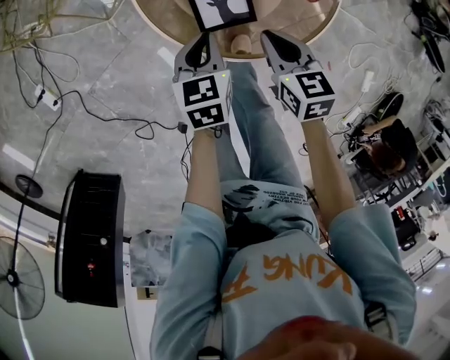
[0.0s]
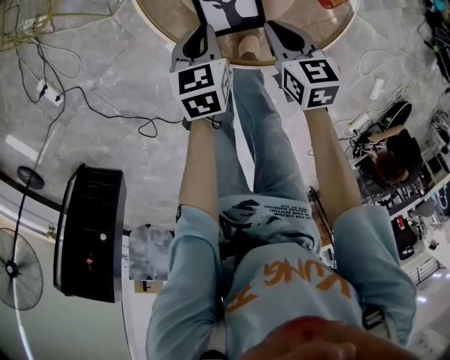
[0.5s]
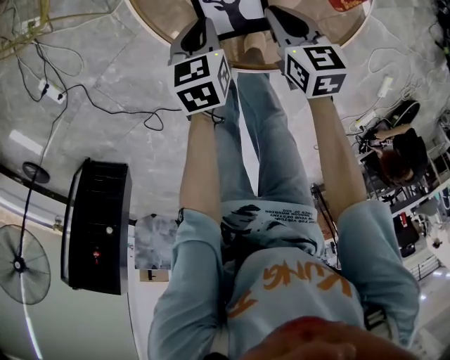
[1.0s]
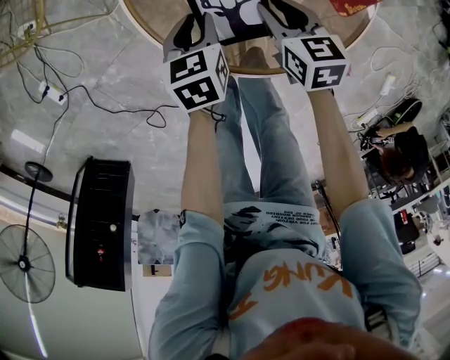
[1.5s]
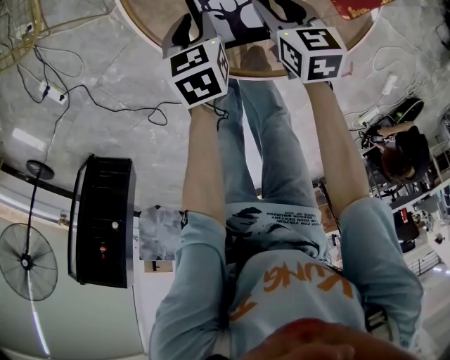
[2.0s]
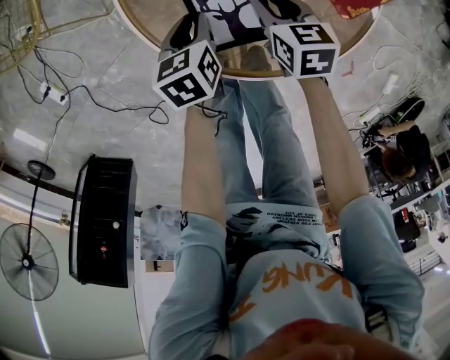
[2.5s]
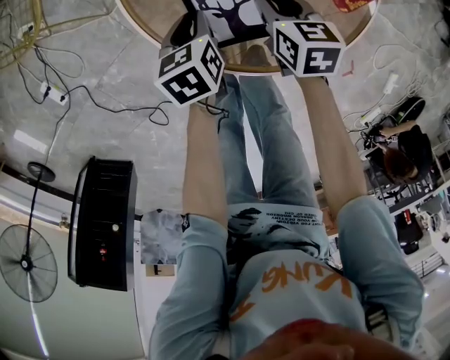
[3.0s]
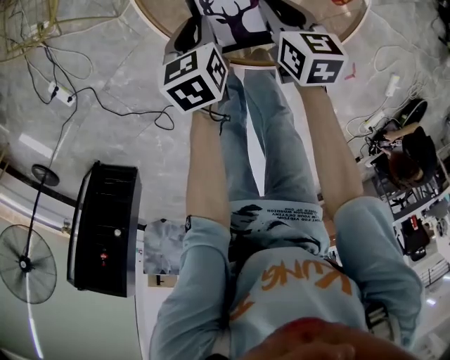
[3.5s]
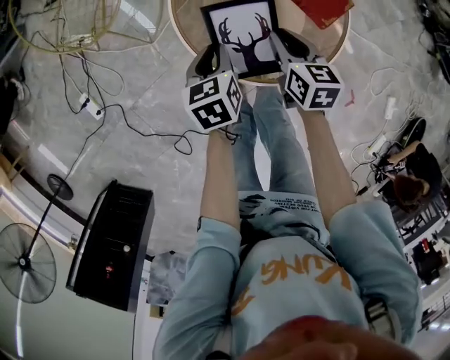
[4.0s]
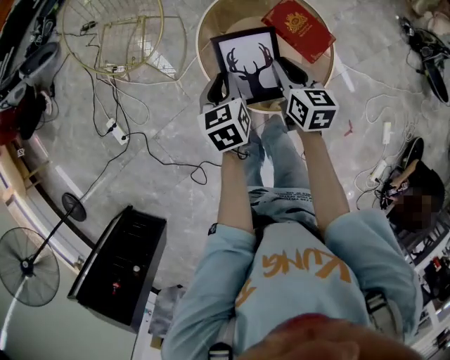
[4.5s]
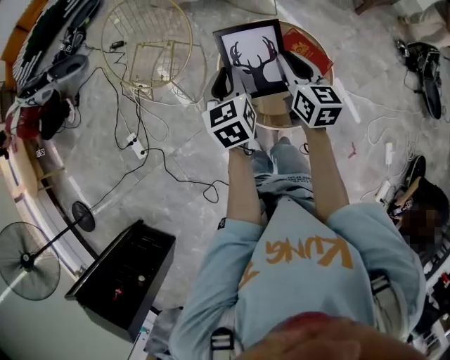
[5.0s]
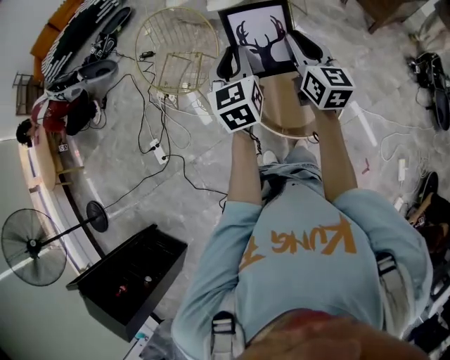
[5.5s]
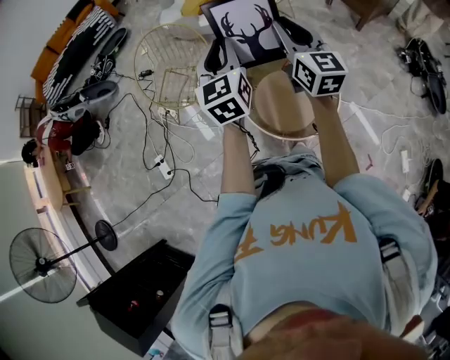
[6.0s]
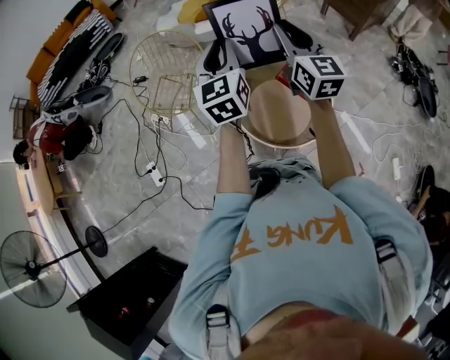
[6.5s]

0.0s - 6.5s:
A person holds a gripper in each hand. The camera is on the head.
0.0s - 2.0s: The grippers both shift downward and forward by some 15 cm. The right gripper opens; the left gripper opens its fingers.
2.0s - 4.5s: Both grippers travel together upward, approximately 35 cm. The left gripper rotates some 20 degrees. Meanwhile the right gripper turns by approximately 20 degrees.
4.5s - 6.5s: The two grippers go about 40 cm upward. The left gripper tips its fingers upward by roughly 40 degrees; the right gripper tilts its fingers some 40 degrees upward.

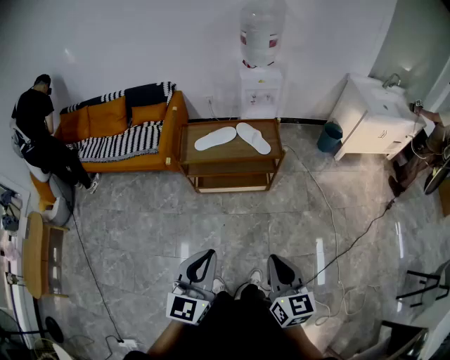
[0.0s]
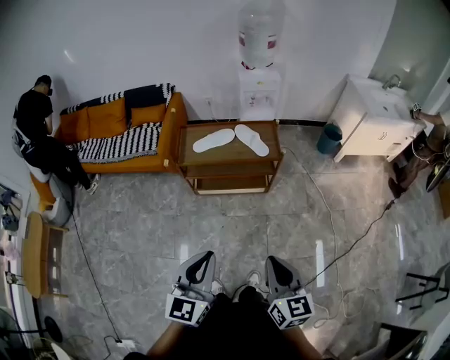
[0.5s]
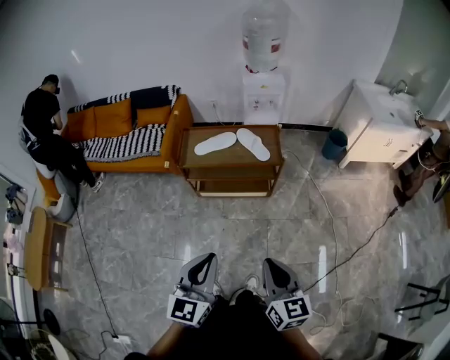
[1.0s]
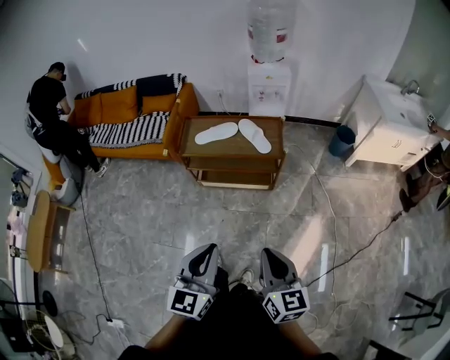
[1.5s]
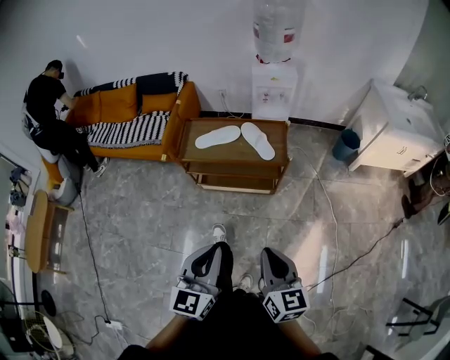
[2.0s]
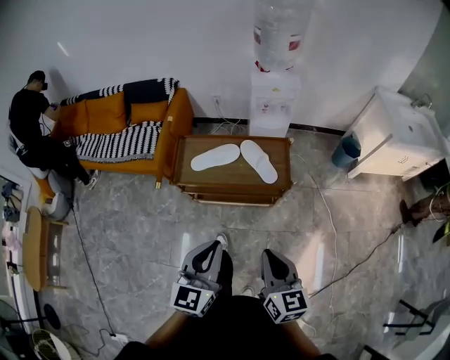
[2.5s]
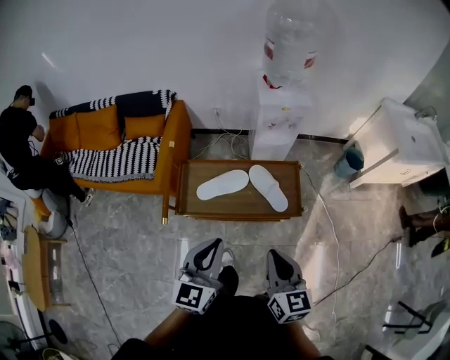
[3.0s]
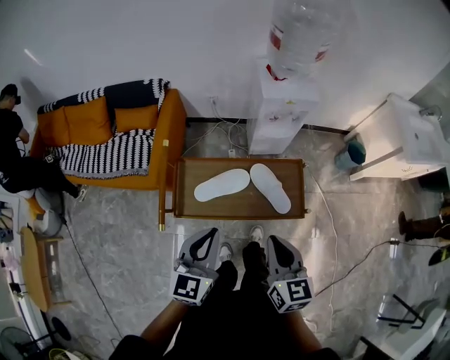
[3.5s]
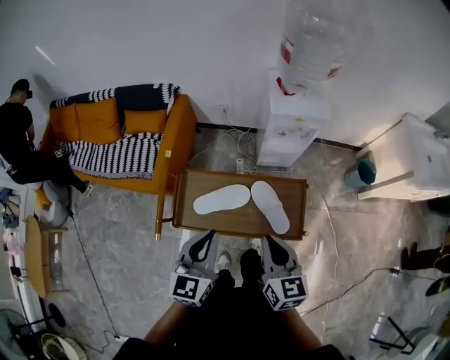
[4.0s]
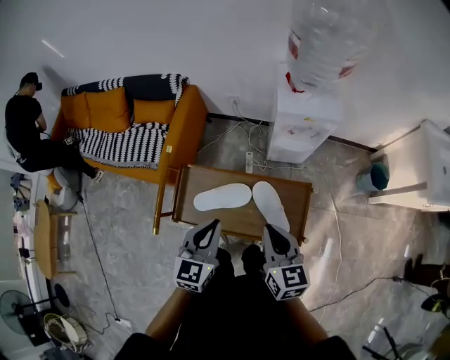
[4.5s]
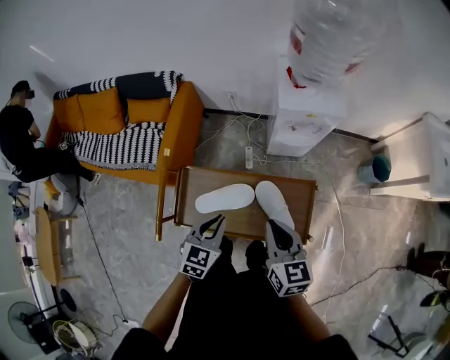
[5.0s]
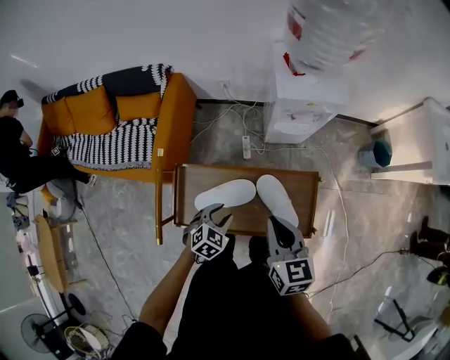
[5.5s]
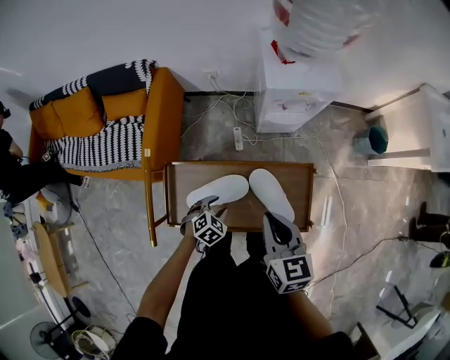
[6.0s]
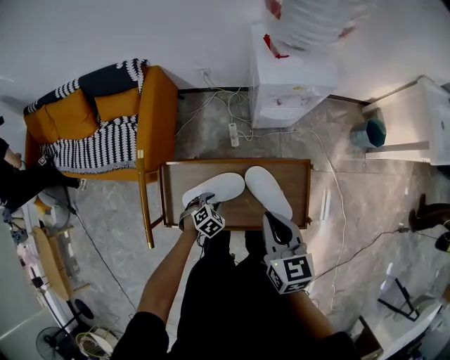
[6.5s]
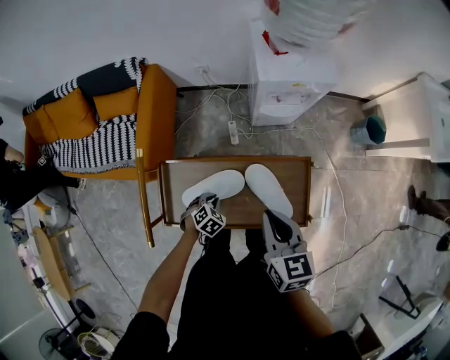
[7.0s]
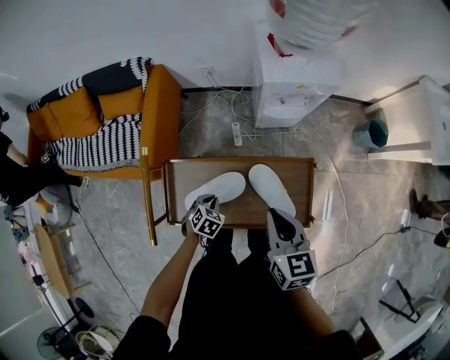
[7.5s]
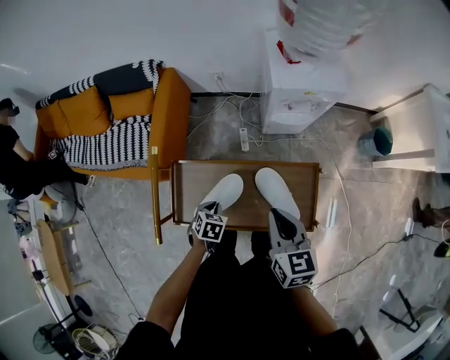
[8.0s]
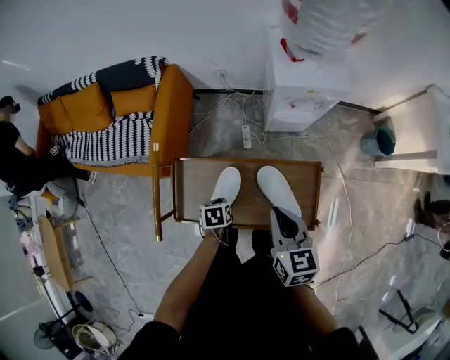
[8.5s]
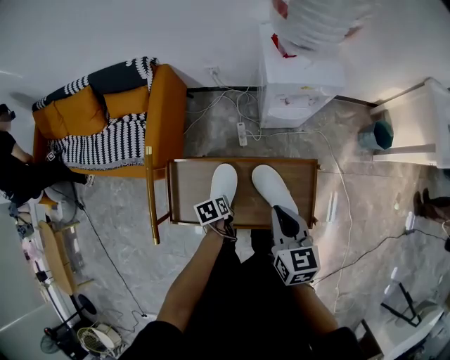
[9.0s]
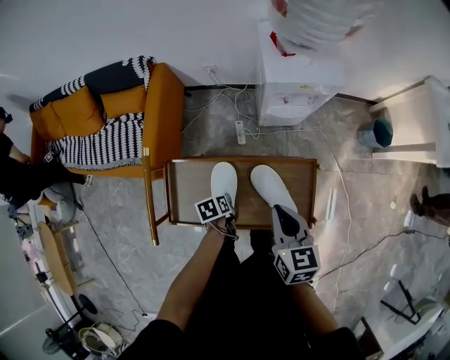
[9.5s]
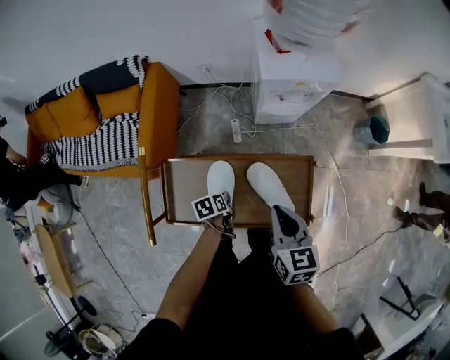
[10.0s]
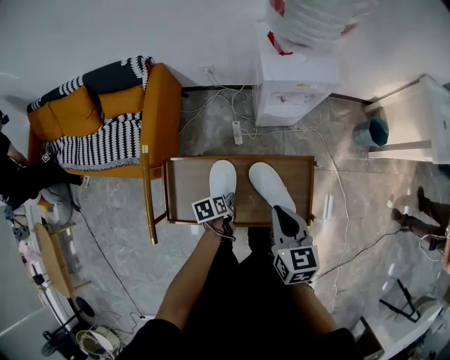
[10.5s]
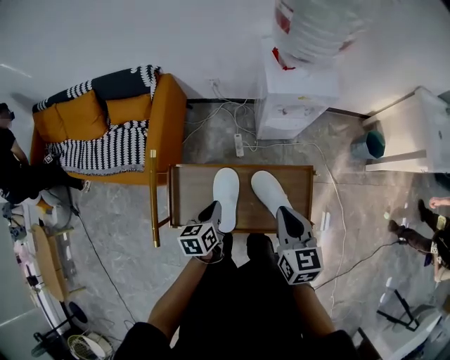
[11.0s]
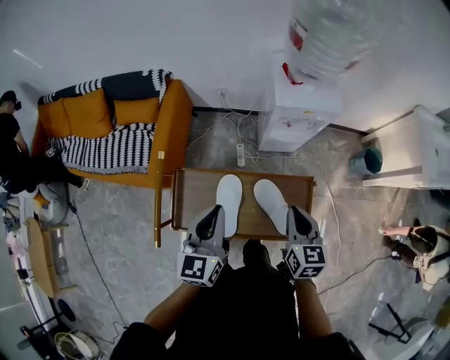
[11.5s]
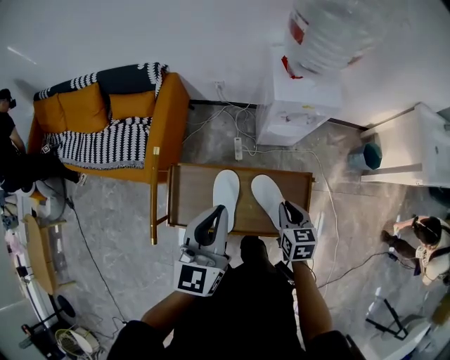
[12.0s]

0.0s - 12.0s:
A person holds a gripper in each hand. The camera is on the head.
0.0s - 2.0s: The left gripper travels to the right and forward by some 15 cm. The right gripper shifts approximately 15 cm forward and to the right.
2.0s - 4.0s: Both grippers are carried forward, about 50 cm.
4.0s - 6.0s: The right gripper is displaced forward and downward by some 15 cm; the left gripper travels downward by roughly 35 cm, points its fingers some 50 degrees further downward, and opens up.
6.0s - 8.0s: The left gripper turns by some 30 degrees, and closes its fingers.
8.0s - 10.0s: The left gripper changes place by about 5 cm, and twists some 50 degrees counterclockwise, seen from behind.
10.0s - 12.0s: The right gripper heads downward, covering roughly 5 cm. The left gripper travels upward by some 40 cm, points its fingers about 50 degrees further upward, and opens, then closes once more.

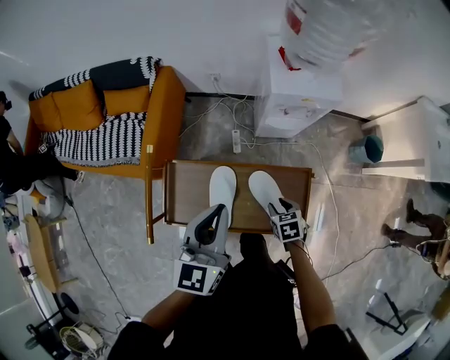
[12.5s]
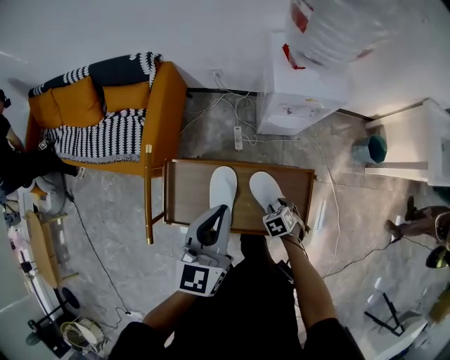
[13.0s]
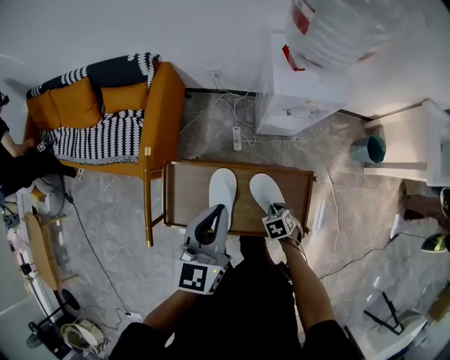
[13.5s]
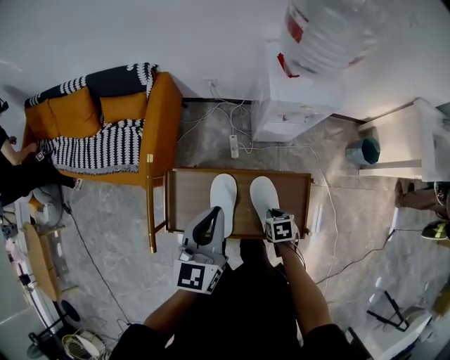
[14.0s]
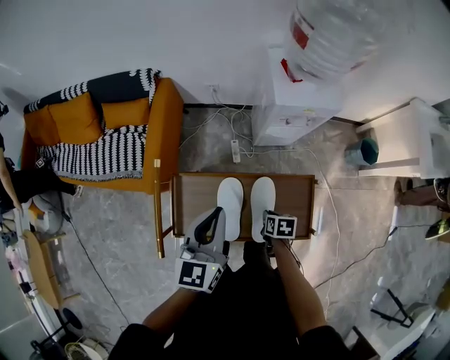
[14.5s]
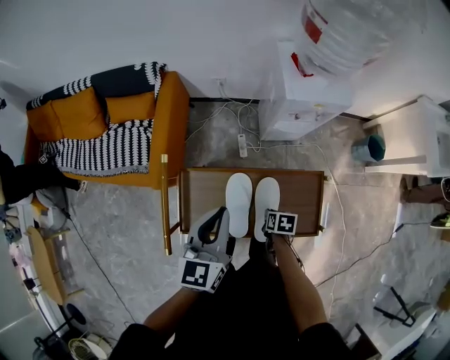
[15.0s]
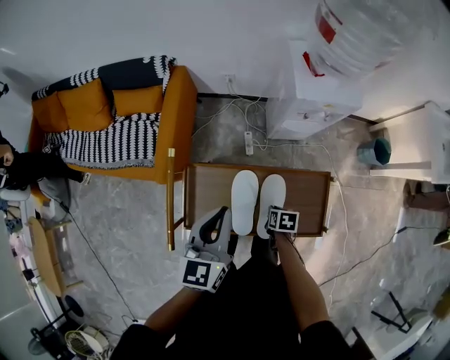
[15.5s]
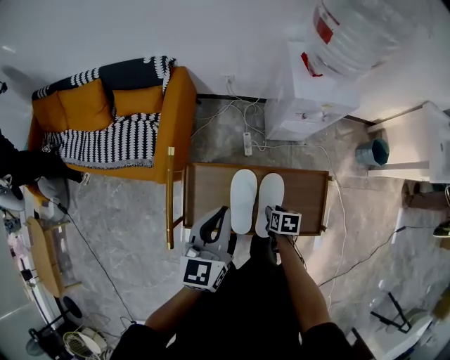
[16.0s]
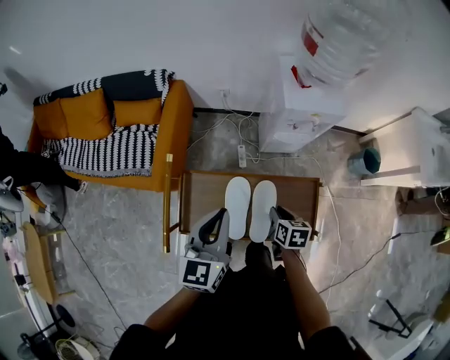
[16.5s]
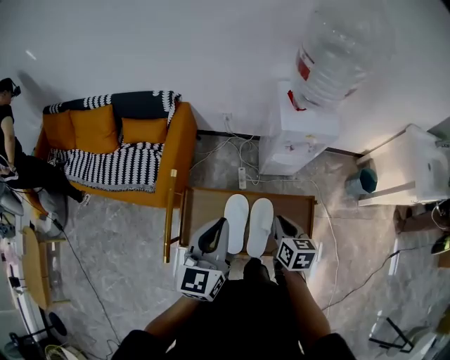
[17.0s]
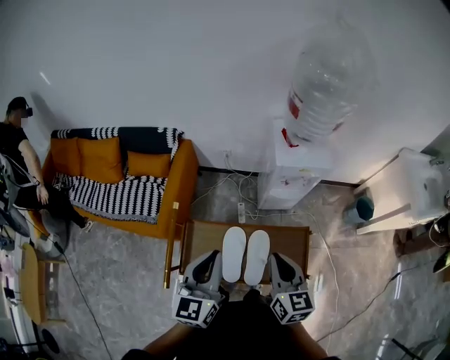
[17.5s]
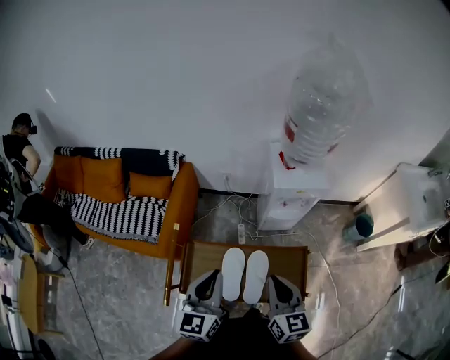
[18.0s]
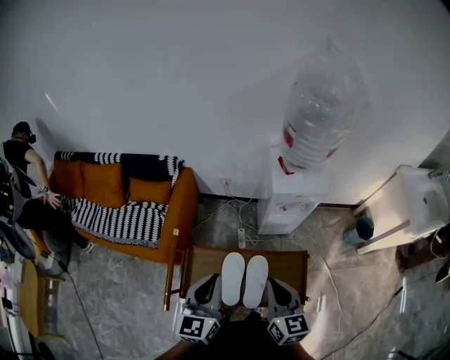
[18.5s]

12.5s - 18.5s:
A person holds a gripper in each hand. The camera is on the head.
12.5s - 14.5s: The left gripper moves about 5 cm. Meanwhile the right gripper moves about 5 cm, swivels about 30 degrees, and closes its fingers.
14.5s - 16.5s: The right gripper moves upward, approximately 10 cm.
16.5s - 18.5s: The left gripper moves upward, roughly 5 cm, while the right gripper heads upward, covering some 25 cm, and points its fingers some 40 degrees further upward.

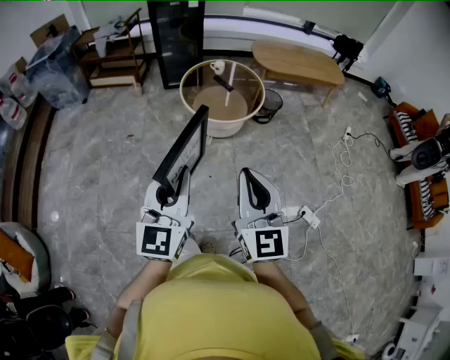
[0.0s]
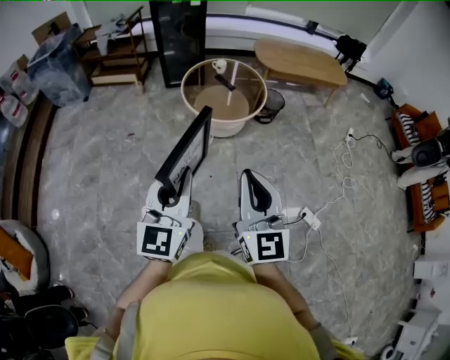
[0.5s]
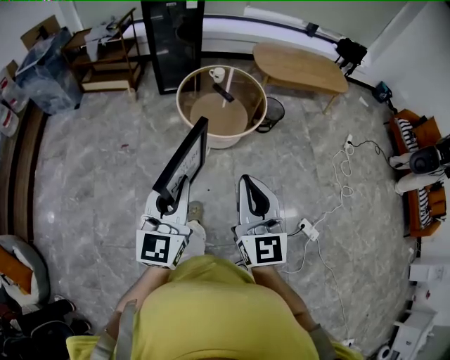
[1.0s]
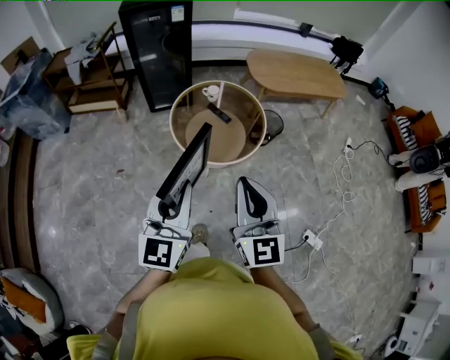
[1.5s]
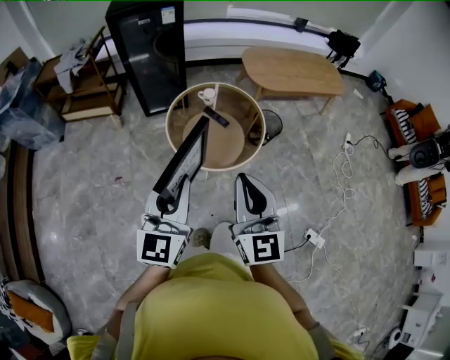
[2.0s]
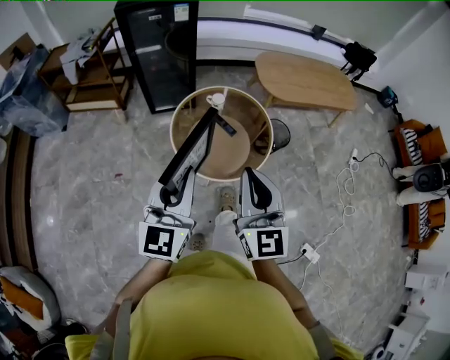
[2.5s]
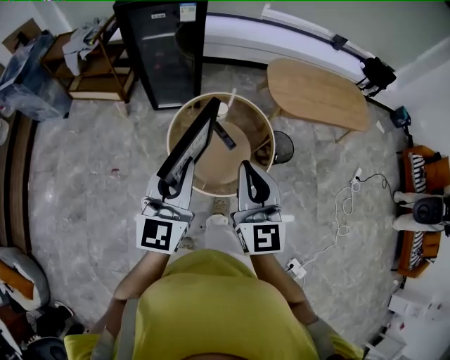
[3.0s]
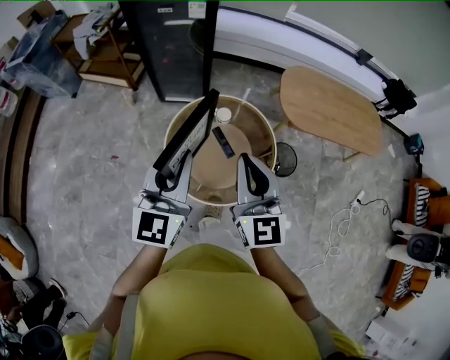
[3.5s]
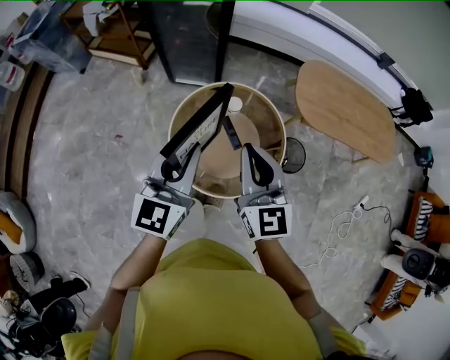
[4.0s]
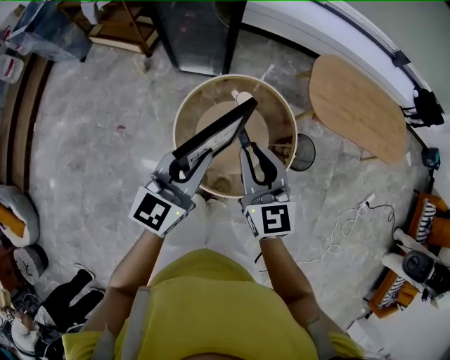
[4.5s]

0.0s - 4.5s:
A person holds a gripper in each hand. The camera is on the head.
0.0s - 2.0s: The two grippers go roughly 35 cm forward.
2.0s - 4.5s: The grippers both shift forward by about 35 cm. The right gripper rotates about 30 degrees.
